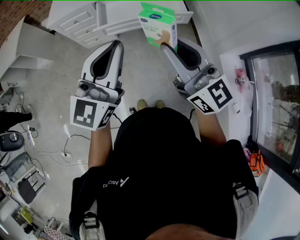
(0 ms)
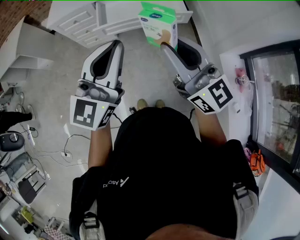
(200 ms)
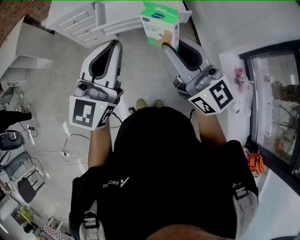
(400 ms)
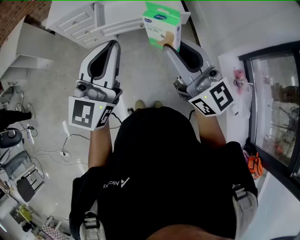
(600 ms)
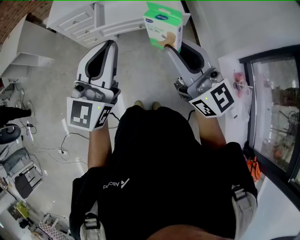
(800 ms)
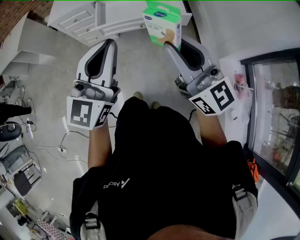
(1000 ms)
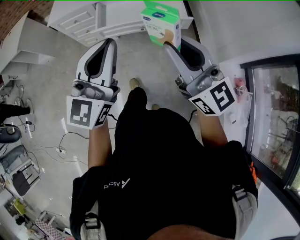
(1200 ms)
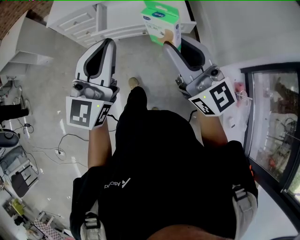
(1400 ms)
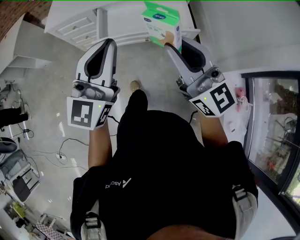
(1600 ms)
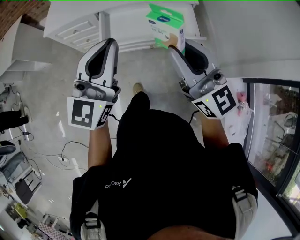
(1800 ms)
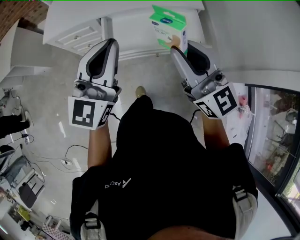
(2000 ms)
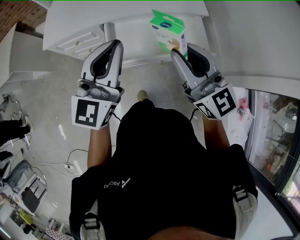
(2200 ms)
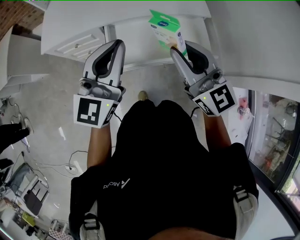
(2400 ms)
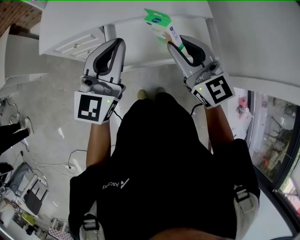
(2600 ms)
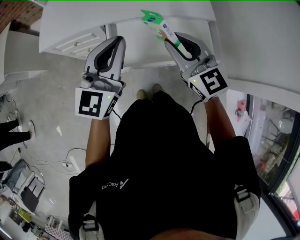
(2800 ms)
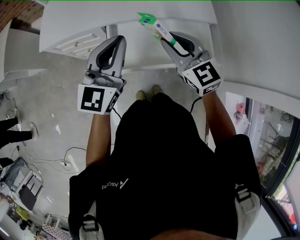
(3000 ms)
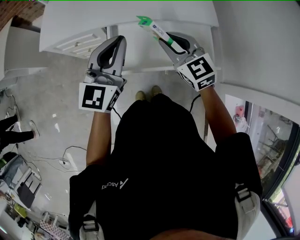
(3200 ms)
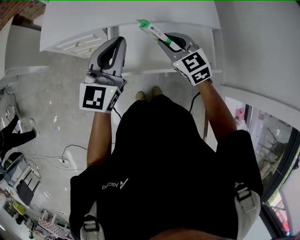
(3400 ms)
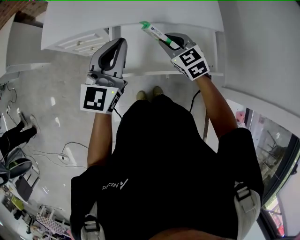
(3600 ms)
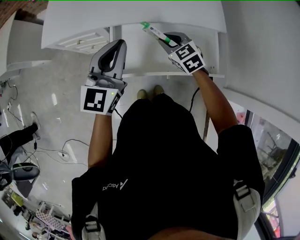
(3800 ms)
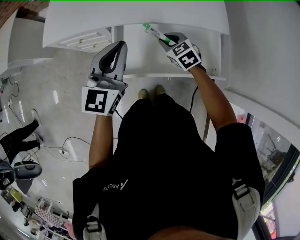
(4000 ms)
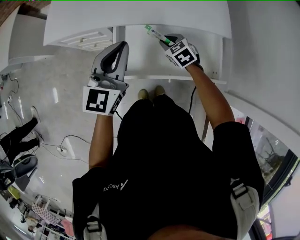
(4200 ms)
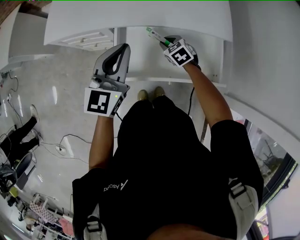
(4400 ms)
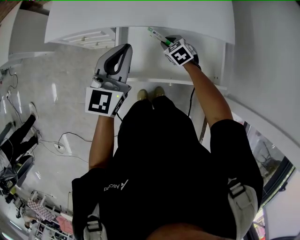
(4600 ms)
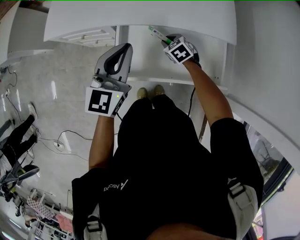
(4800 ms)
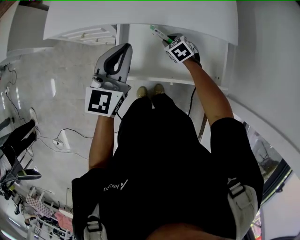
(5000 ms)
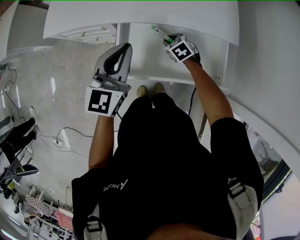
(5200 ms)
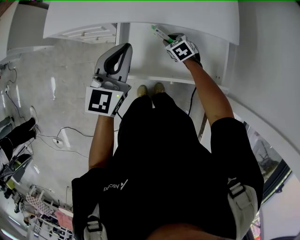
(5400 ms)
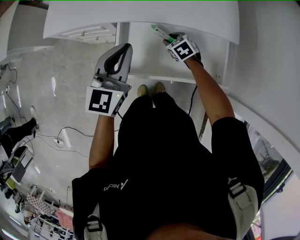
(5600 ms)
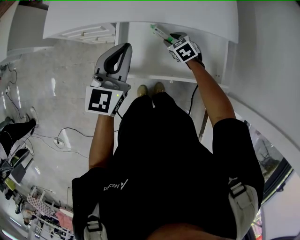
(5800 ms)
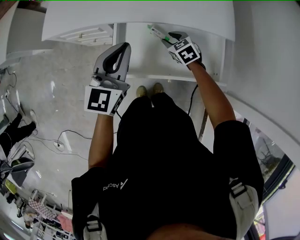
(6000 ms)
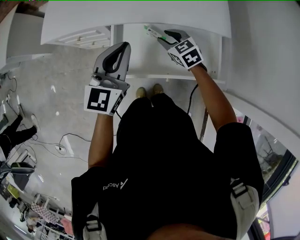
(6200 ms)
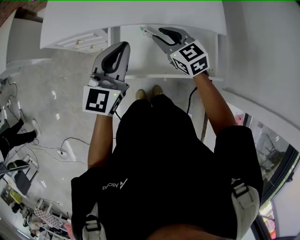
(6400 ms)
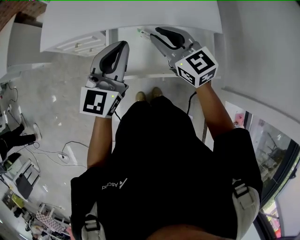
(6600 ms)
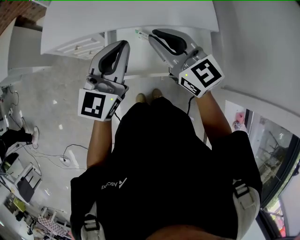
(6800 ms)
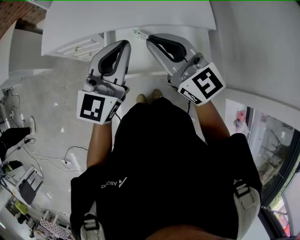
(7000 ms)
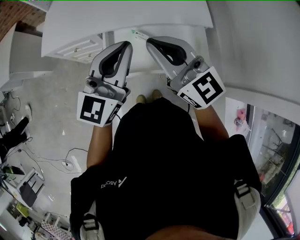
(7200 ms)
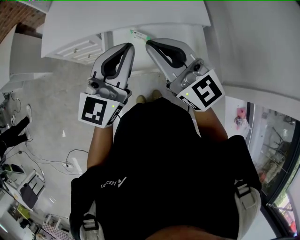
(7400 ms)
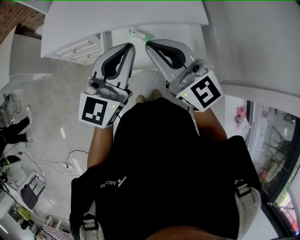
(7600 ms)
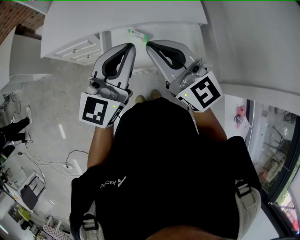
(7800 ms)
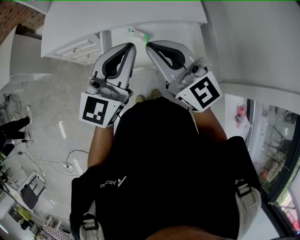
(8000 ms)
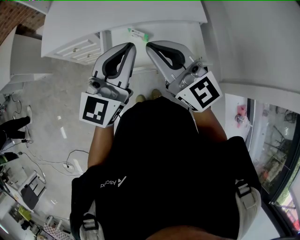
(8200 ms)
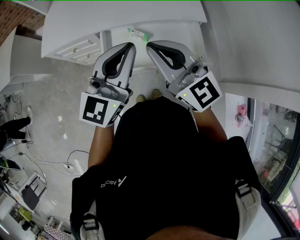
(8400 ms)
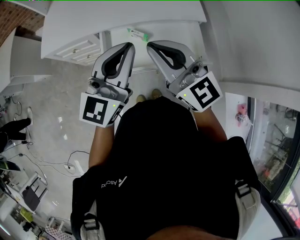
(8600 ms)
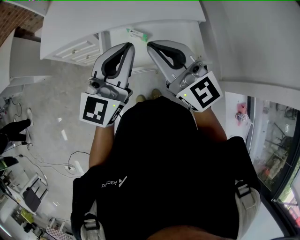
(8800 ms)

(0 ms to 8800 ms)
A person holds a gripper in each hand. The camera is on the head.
0 ms - 1400 ms: The grippers both shift forward by roughly 5 cm.
1400 ms - 3000 ms: Both grippers travel together forward, approximately 35 cm. The right gripper rotates about 30 degrees.
3000 ms - 4400 ms: The right gripper is displaced downward and forward by about 30 cm, and tips its fingers downward by about 40 degrees. The left gripper travels downward and forward by roughly 10 cm.
4400 ms - 5800 ms: There are only small adjustments of the grippers.
5800 ms - 7400 ms: The right gripper moves upward and backward, about 40 cm, angles its fingers upward, by about 60 degrees, and closes. The left gripper goes approximately 20 cm upward, backward and to the right, and turns by about 20 degrees.
7400 ms - 8800 ms: The grippers stay close to where they were, moving slightly.

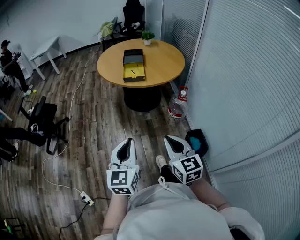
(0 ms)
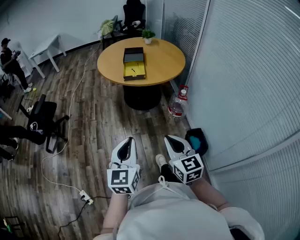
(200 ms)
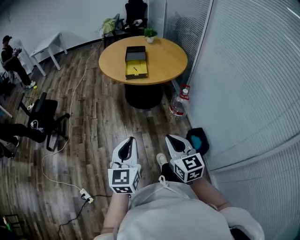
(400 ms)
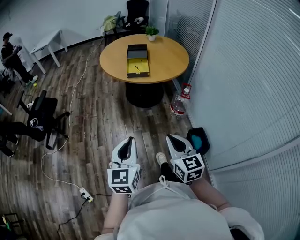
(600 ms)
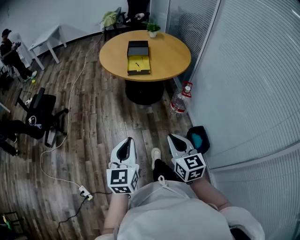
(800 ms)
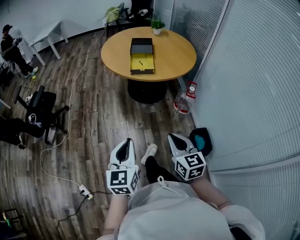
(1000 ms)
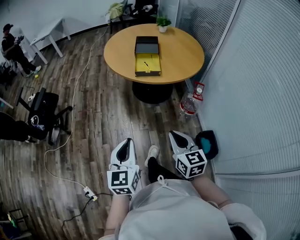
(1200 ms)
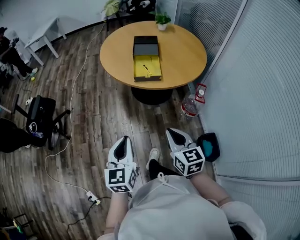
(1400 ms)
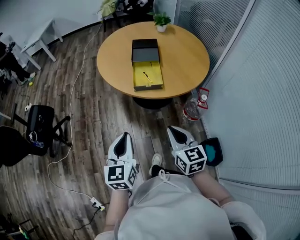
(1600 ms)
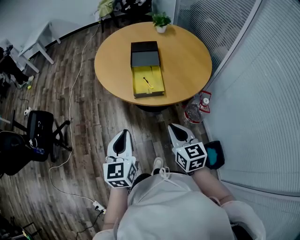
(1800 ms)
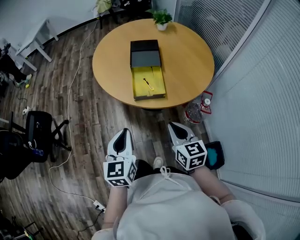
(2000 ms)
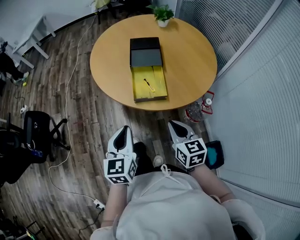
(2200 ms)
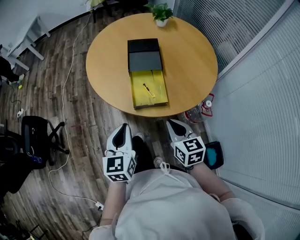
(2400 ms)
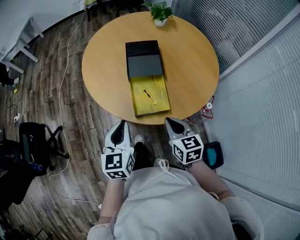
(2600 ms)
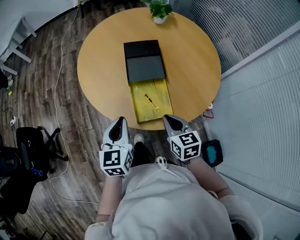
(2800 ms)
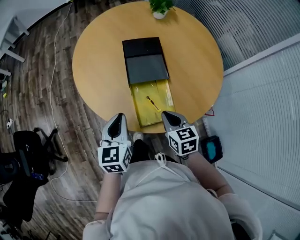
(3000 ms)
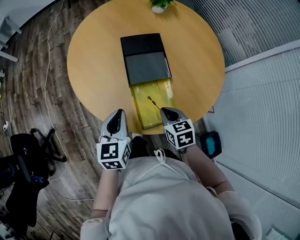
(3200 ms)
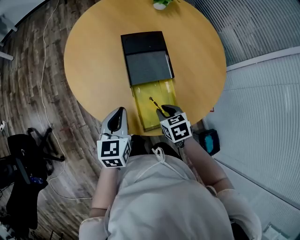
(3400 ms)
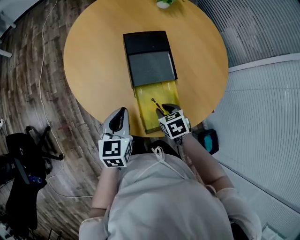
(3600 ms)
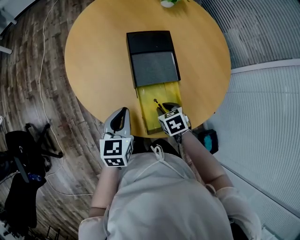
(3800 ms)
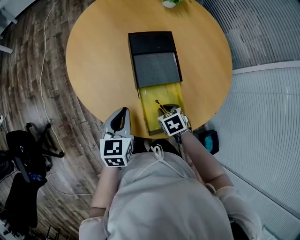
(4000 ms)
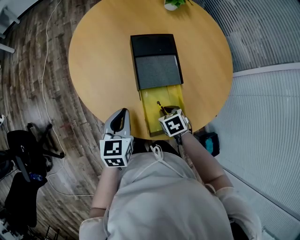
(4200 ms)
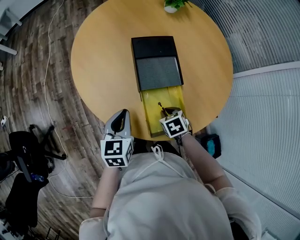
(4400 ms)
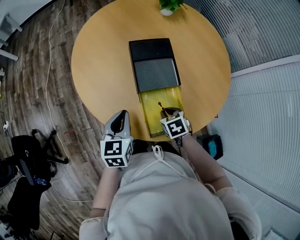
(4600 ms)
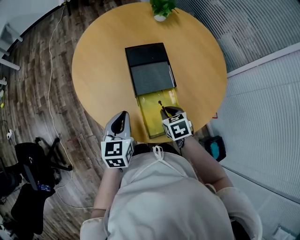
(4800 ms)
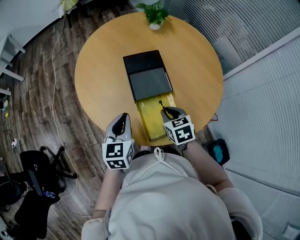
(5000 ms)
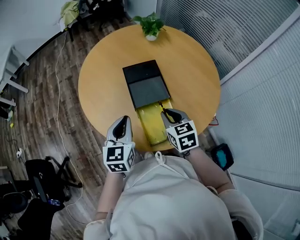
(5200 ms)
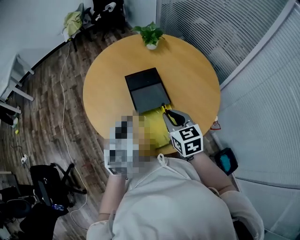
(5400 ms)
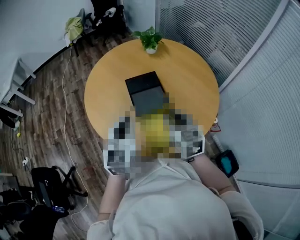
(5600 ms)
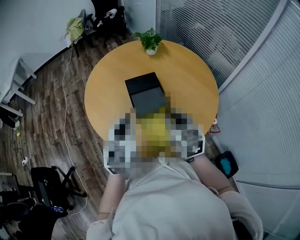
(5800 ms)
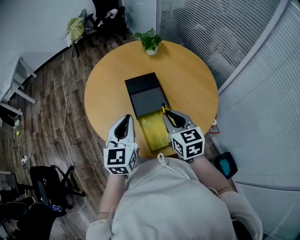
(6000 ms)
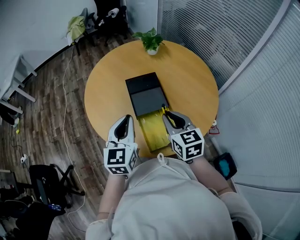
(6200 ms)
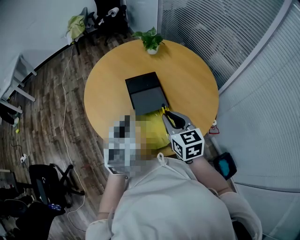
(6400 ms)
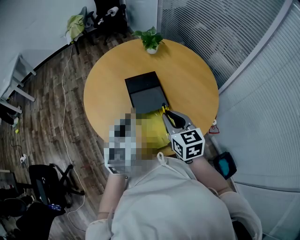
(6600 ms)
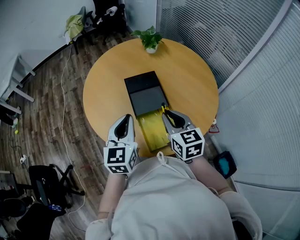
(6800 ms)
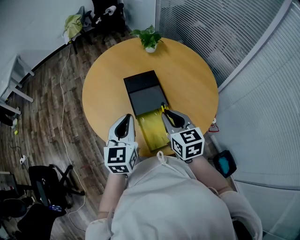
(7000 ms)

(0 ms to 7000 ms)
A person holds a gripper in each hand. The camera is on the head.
0 ms - 1400 ms: The grippers both shift forward by approximately 25 cm.
1400 ms - 2800 ms: The pair of grippers is taken forward, approximately 50 cm.
2800 ms - 4200 ms: The left gripper is displaced forward and downward by approximately 20 cm. Meanwhile the right gripper goes some 20 cm downward and forward, and points its fingers roughly 40 degrees further downward.
4200 ms - 5600 ms: The two grippers go approximately 25 cm upward. The left gripper rotates some 30 degrees. The right gripper tilts its fingers roughly 50 degrees upward.
5600 ms - 7000 ms: The grippers make only small movements.

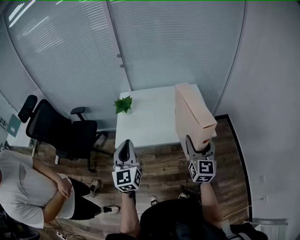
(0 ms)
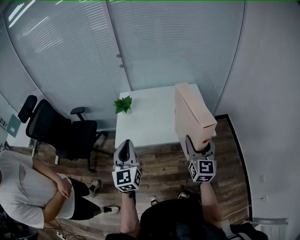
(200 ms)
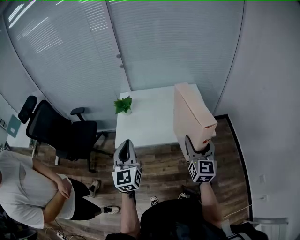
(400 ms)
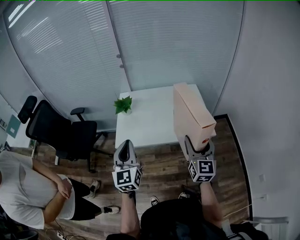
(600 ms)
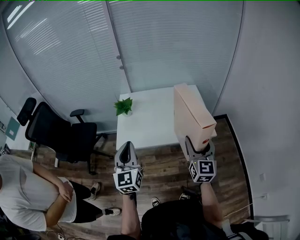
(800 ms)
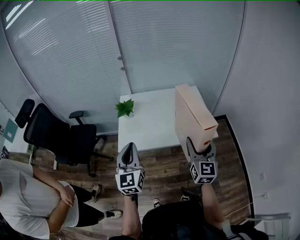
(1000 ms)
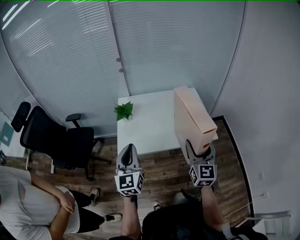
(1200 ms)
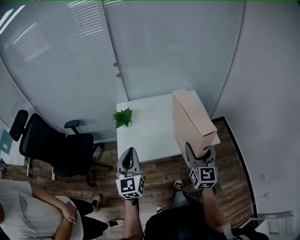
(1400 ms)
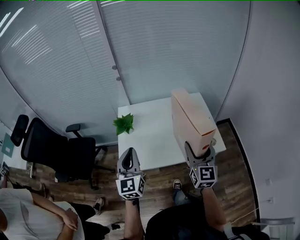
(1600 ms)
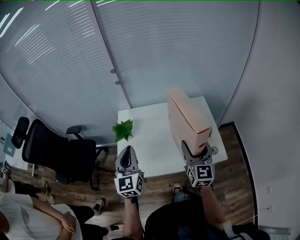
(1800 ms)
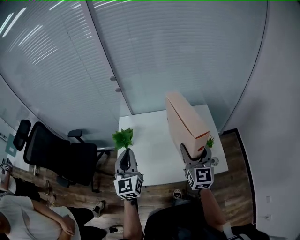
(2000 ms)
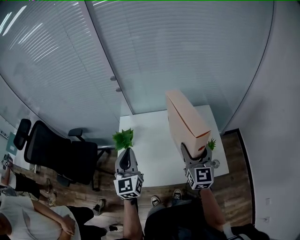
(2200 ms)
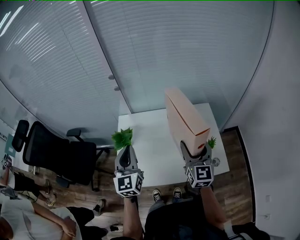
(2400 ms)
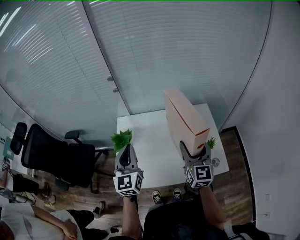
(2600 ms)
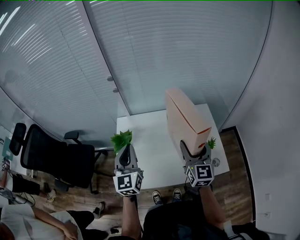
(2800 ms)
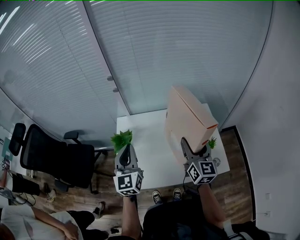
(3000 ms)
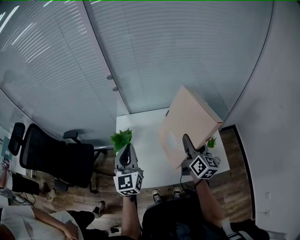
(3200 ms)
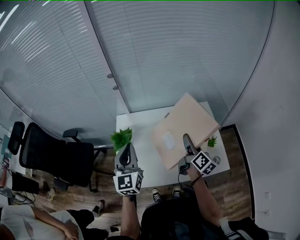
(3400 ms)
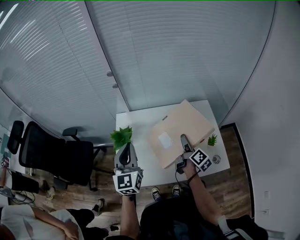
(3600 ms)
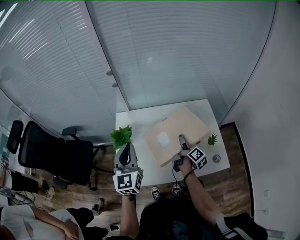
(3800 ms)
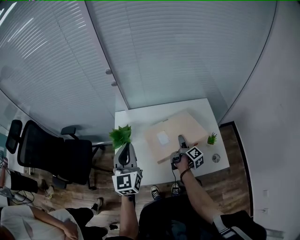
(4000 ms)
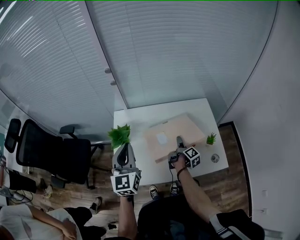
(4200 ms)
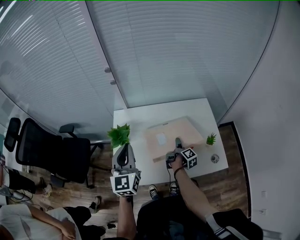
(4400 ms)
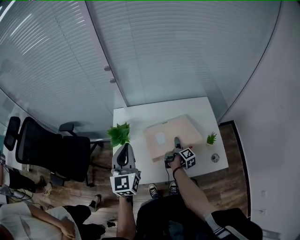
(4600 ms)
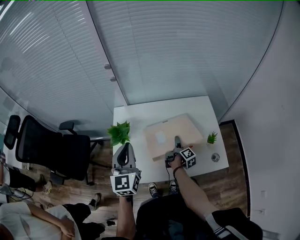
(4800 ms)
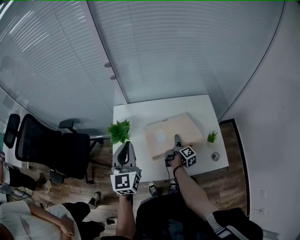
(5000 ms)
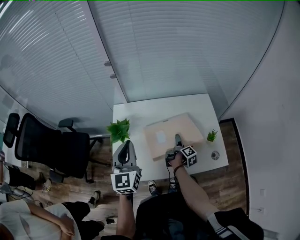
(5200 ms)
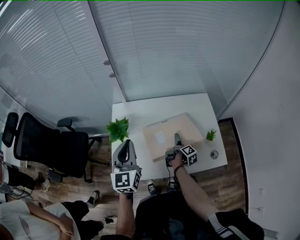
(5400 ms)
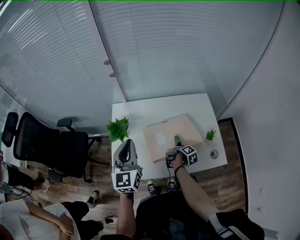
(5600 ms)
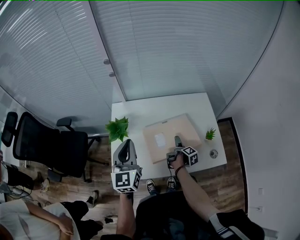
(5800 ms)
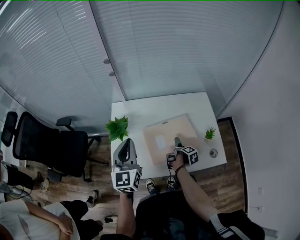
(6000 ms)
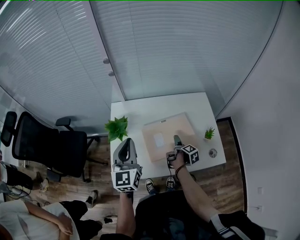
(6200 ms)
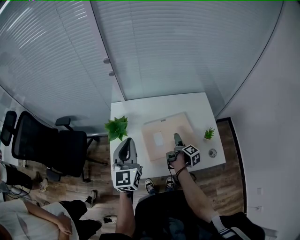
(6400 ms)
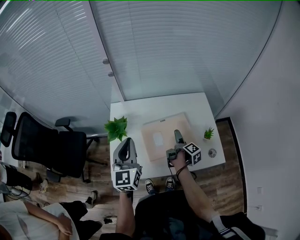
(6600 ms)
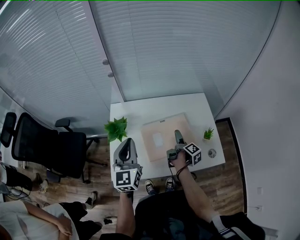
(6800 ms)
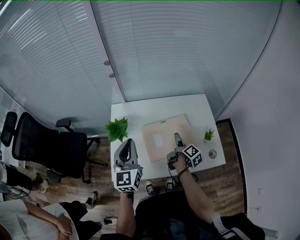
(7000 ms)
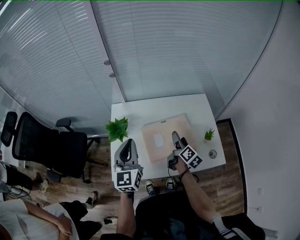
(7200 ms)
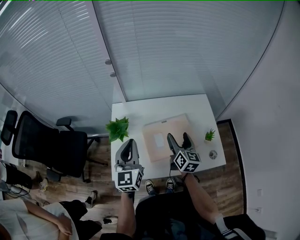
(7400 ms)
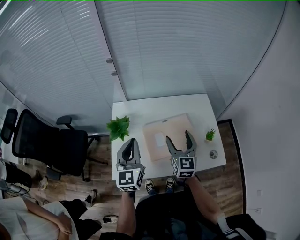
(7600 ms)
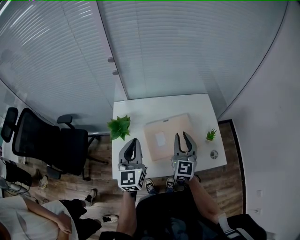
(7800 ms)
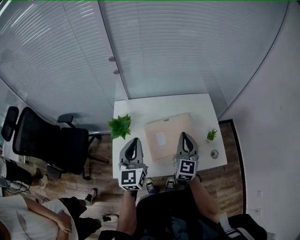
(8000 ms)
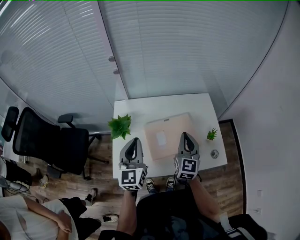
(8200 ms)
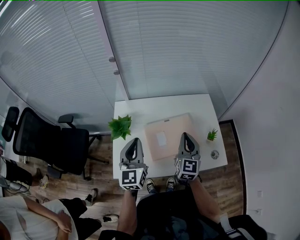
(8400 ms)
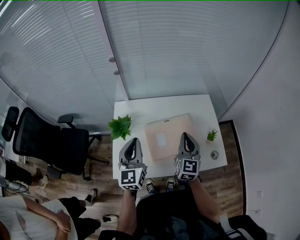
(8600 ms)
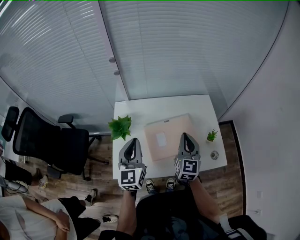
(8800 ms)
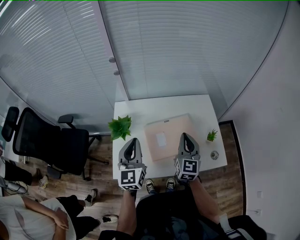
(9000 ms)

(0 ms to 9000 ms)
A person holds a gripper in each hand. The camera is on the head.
0 ms - 1600 ms: The left gripper travels forward by some 15 cm, while the right gripper is displaced forward and to the left by approximately 15 cm.
1600 ms - 3000 ms: The two grippers go approximately 20 cm forward.
3000 ms - 4400 ms: The right gripper moves downward, roughly 30 cm, and rotates around the line of its fingers by roughly 80 degrees, clockwise from behind.
4400 ms - 6000 ms: The right gripper heads backward, covering roughly 5 cm, swivels approximately 20 degrees, and opens up.
6000 ms - 7600 ms: The right gripper moves upward, some 25 cm, twists some 90 degrees counterclockwise, seen from behind, and closes its fingers.
7600 ms - 9000 ms: The right gripper closes.
